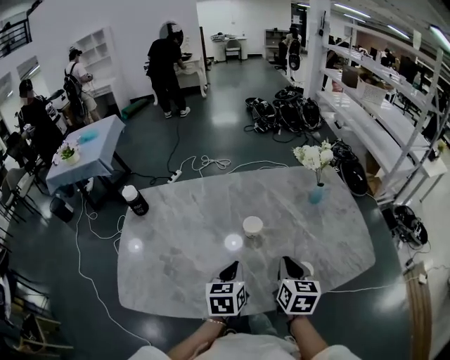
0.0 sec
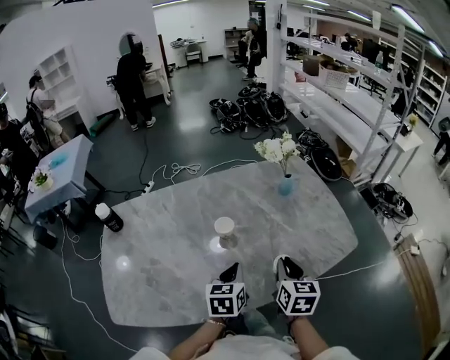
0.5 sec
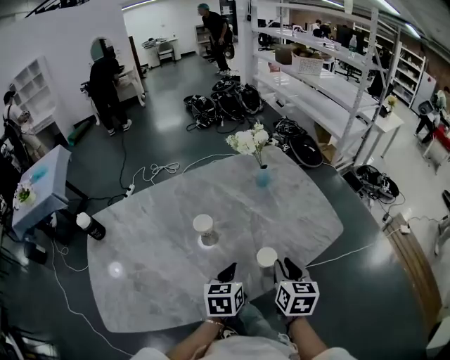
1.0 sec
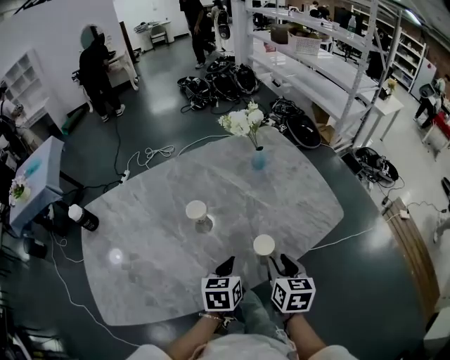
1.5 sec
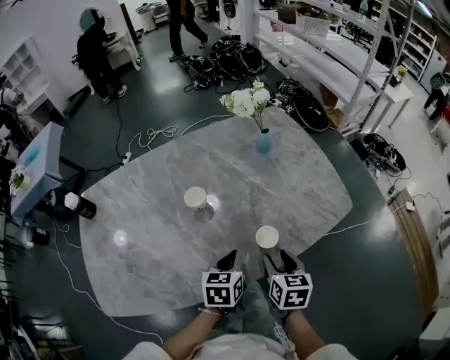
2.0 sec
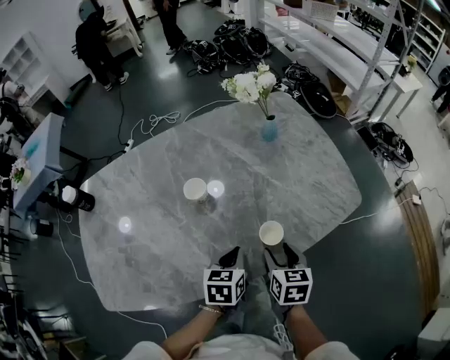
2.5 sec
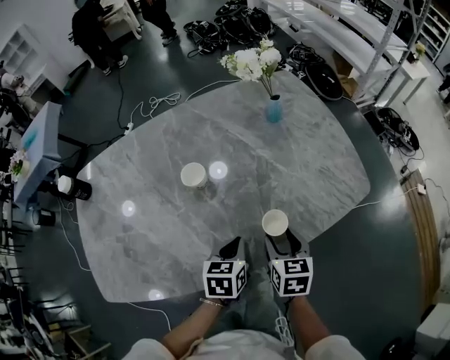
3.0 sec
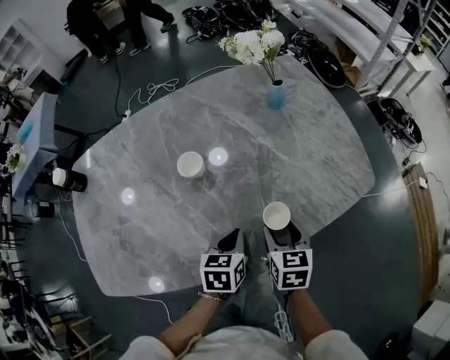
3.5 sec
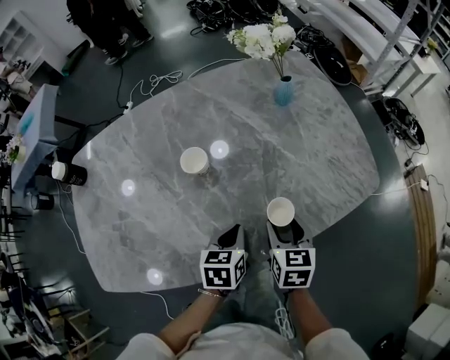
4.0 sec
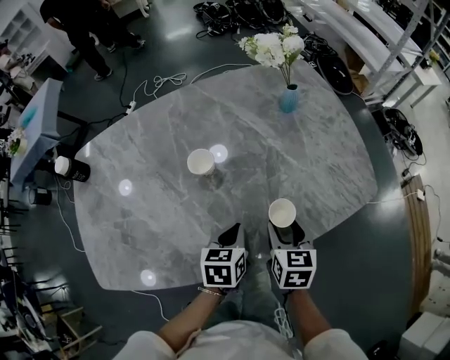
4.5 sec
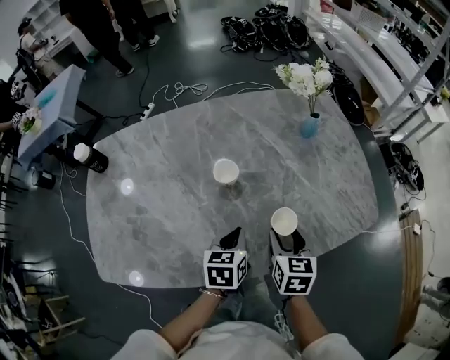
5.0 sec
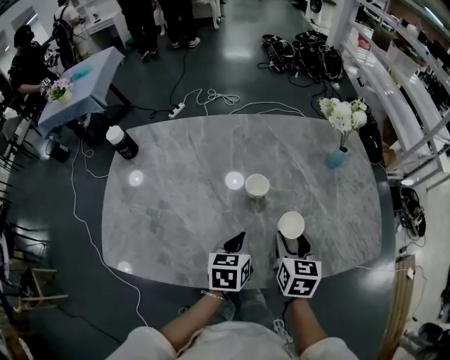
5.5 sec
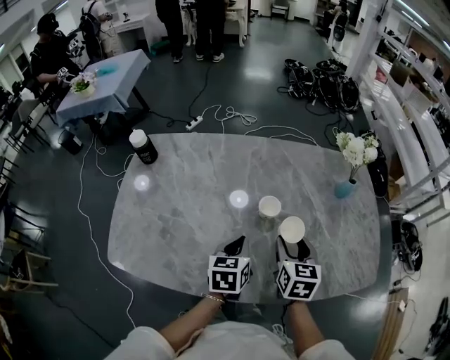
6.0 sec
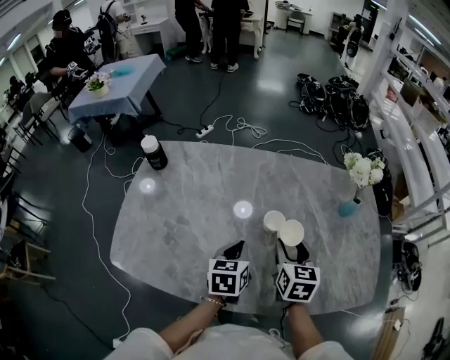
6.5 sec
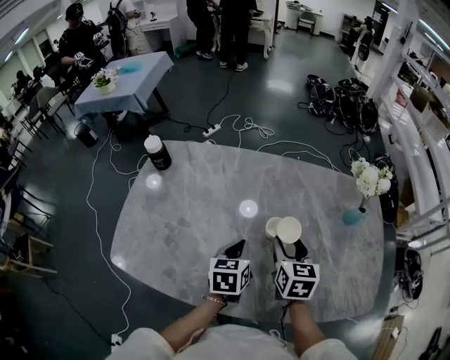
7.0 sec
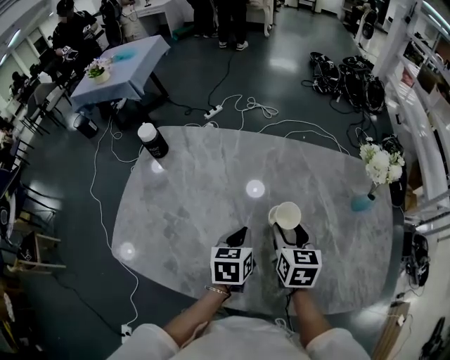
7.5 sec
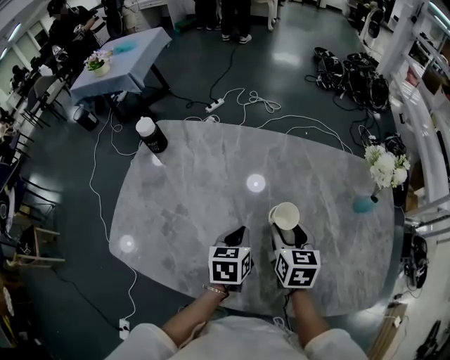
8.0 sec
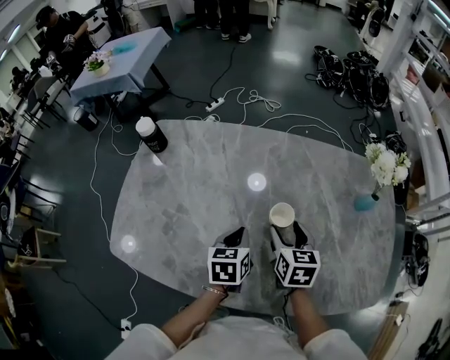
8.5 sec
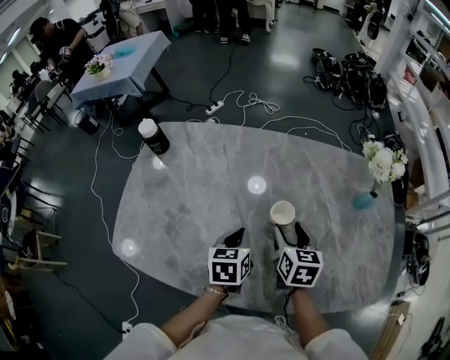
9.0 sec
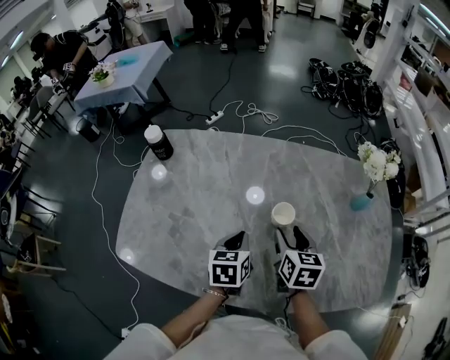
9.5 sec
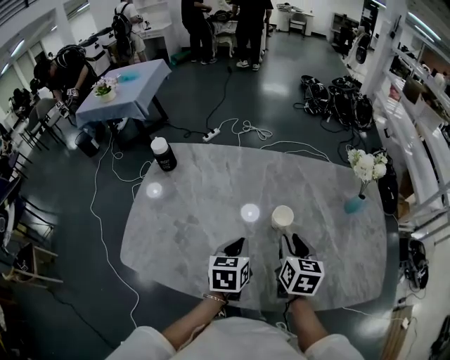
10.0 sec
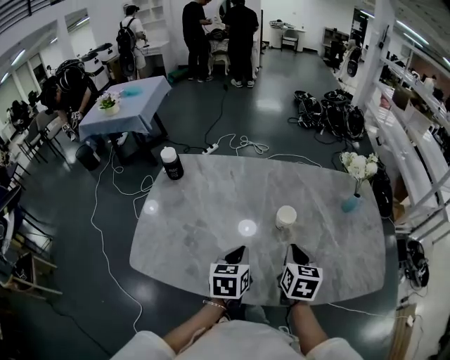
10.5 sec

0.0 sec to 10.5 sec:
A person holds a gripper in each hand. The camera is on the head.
0.0 sec to 2.0 sec: The right gripper heads to the right, downward and backward, covering some 15 cm, and opens, while the left gripper shifts about 15 cm to the right and downward, and turns by approximately 20 degrees.
2.0 sec to 4.0 sec: The right gripper changes place by approximately 5 cm. The left gripper moves downward, some 5 cm.
4.0 sec to 6.5 sec: The right gripper travels to the left, upward and forward by some 25 cm, and turns by approximately 20 degrees. The left gripper moves to the left and upward, approximately 20 cm, and changes its angle by roughly 30 degrees.
6.5 sec to 8.5 sec: The left gripper shifts by about 5 cm, while the right gripper goes some 5 cm forward and downward.
8.5 sec to 10.5 sec: The two grippers go approximately 15 cm backward and upward. The right gripper closes up.

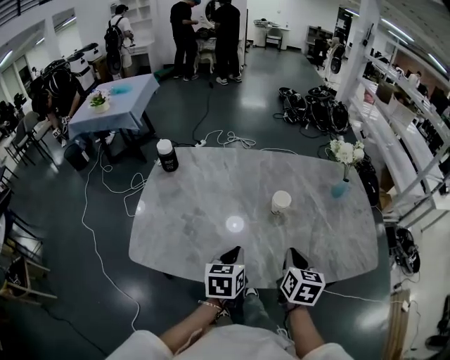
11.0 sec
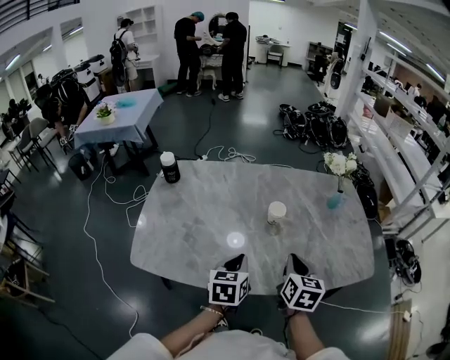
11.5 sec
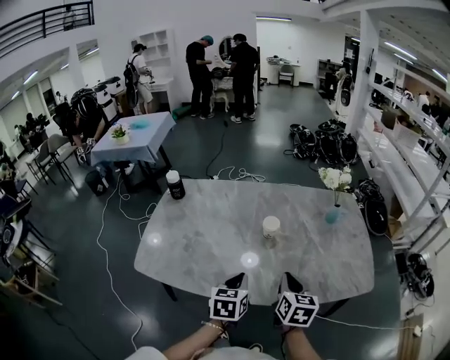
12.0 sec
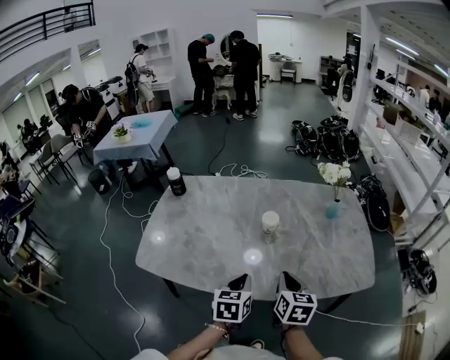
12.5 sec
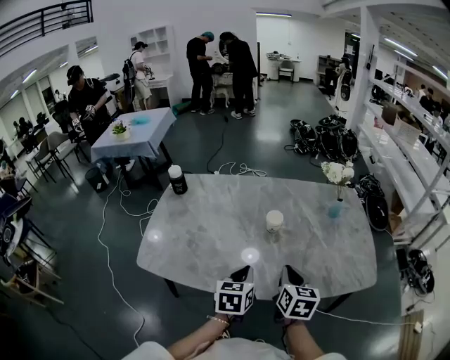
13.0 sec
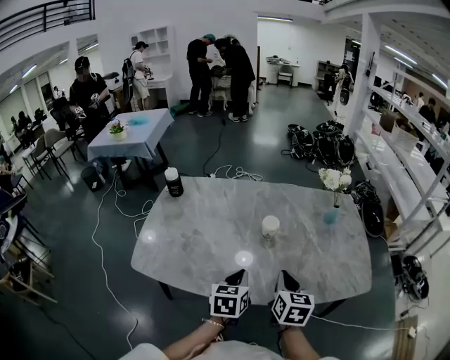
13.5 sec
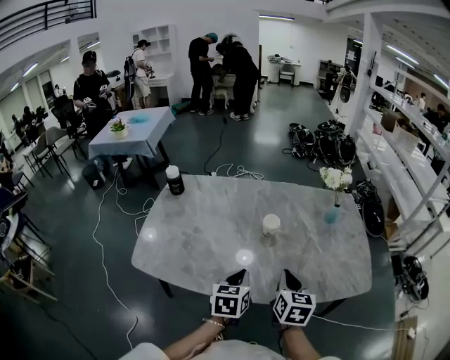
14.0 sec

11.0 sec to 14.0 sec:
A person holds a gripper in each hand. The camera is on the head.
11.0 sec to 12.5 sec: The right gripper is displaced backward and to the right by roughly 10 cm. Meanwhile the left gripper travels to the right and backward by roughly 10 cm.
12.5 sec to 14.0 sec: There are only small adjustments of the grippers.

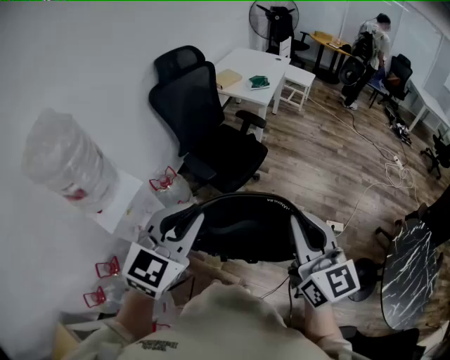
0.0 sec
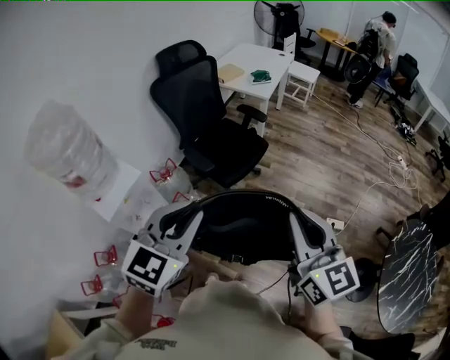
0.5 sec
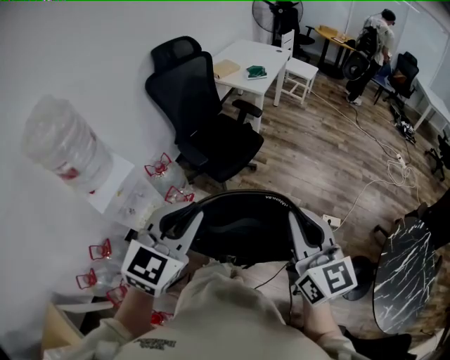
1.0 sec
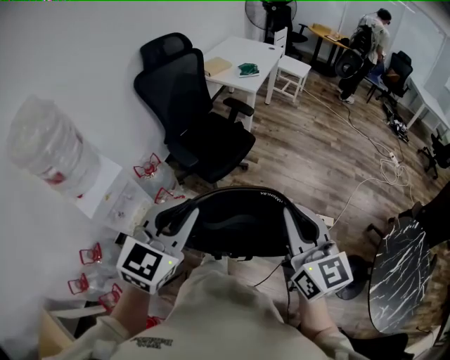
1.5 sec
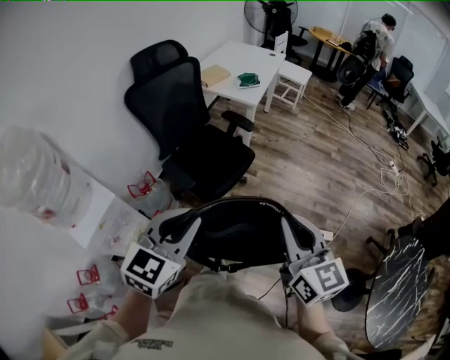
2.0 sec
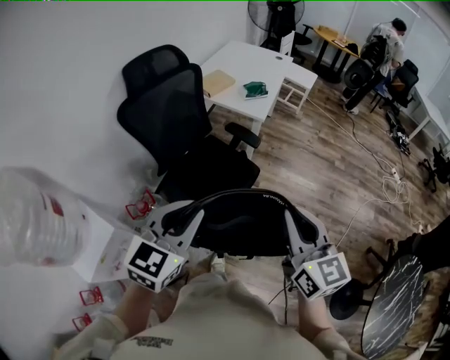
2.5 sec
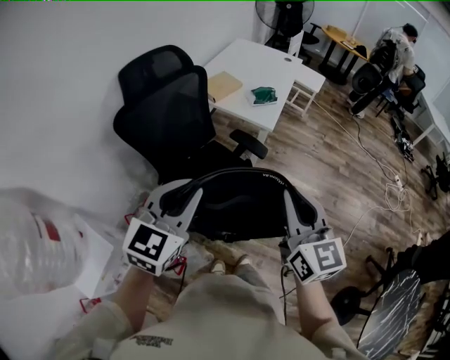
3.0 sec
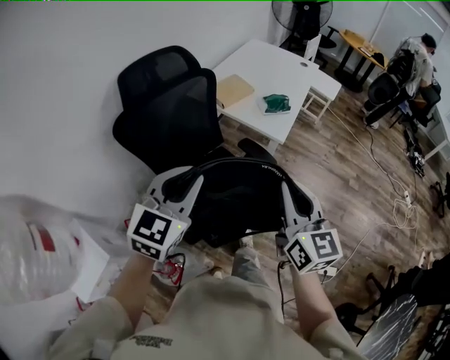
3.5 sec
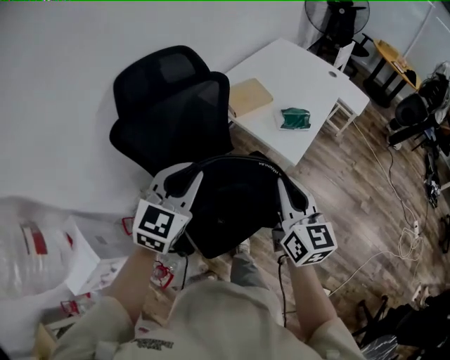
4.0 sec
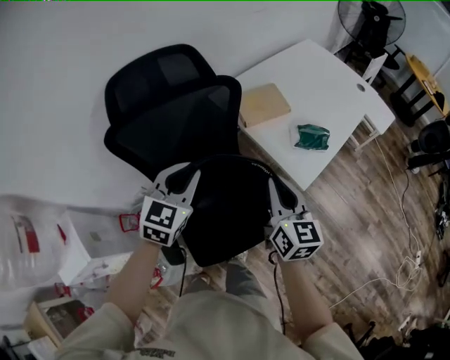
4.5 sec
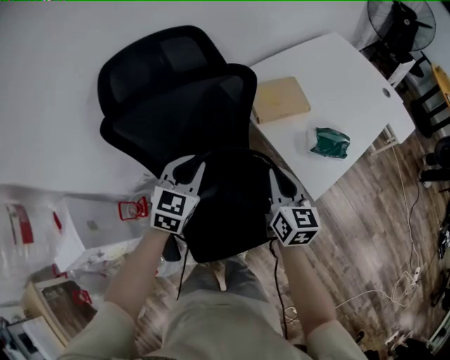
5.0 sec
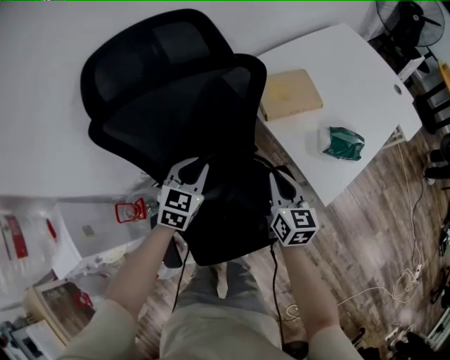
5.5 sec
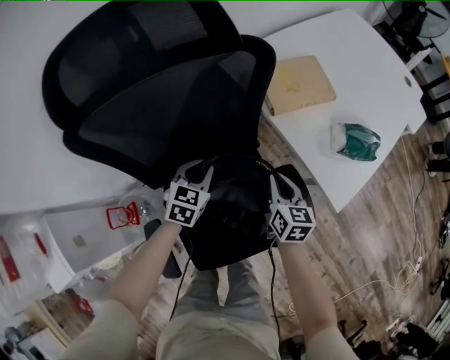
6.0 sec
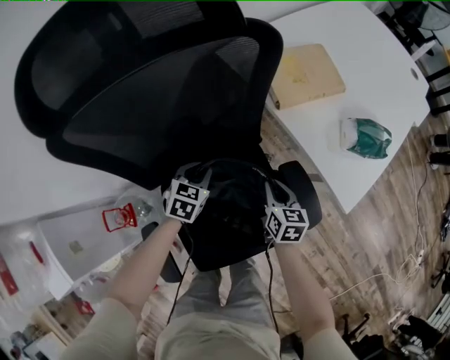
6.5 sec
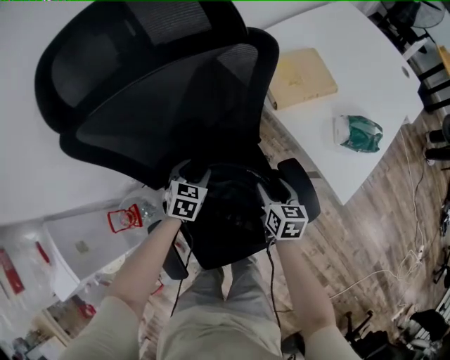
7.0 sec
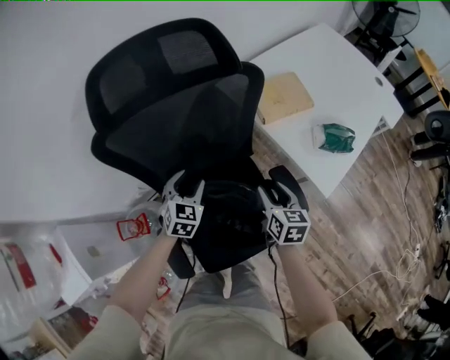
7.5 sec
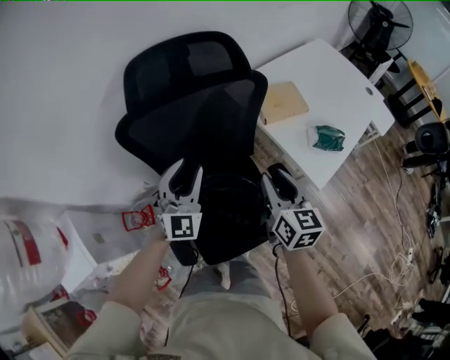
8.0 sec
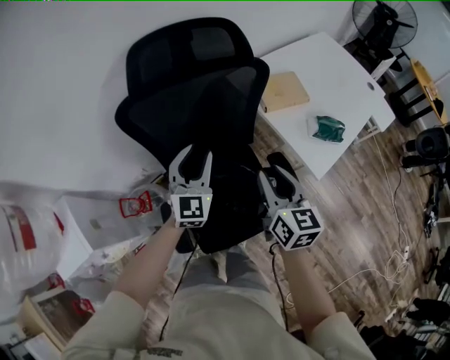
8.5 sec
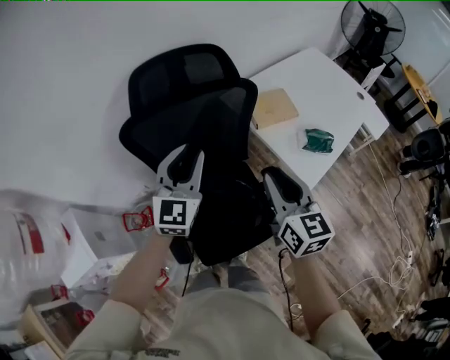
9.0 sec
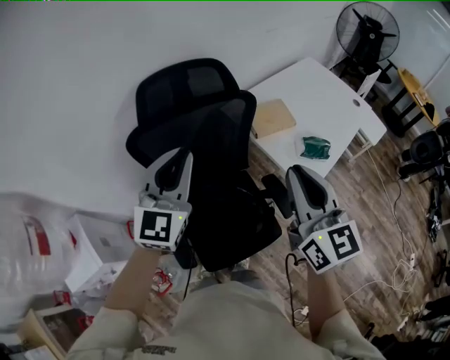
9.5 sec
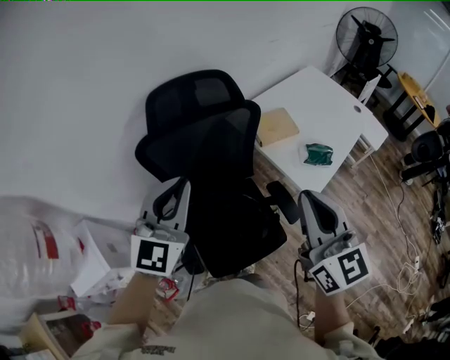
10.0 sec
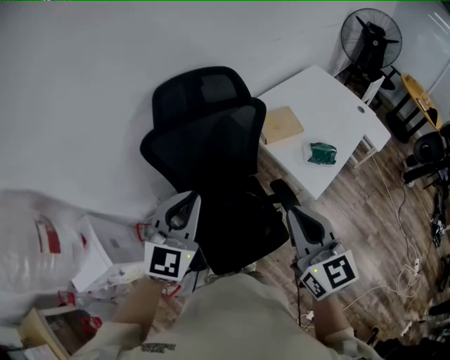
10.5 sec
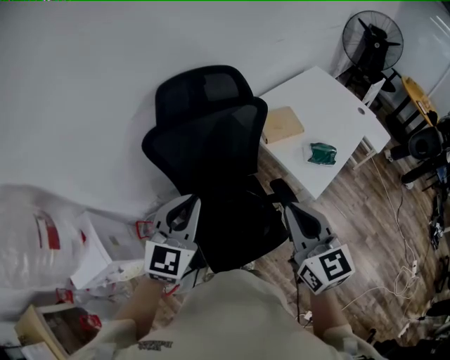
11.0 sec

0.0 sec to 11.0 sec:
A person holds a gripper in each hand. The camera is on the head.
0.0 sec to 2.0 sec: The grippers both shift forward, to the right and downward by roughly 15 cm.
2.0 sec to 3.5 sec: Both grippers are carried forward, some 40 cm.
3.5 sec to 5.5 sec: The left gripper changes place by approximately 40 cm, and changes its angle by roughly 30 degrees, while the right gripper changes place by some 50 cm, and turns by roughly 30 degrees.
5.5 sec to 7.5 sec: The right gripper goes downward and returns, some 20 cm each way, and opens. Meanwhile the left gripper is displaced to the left by roughly 5 cm, travels downward and back again, approximately 20 cm each way, and opens its fingers.
7.5 sec to 9.0 sec: The grippers both shift upward by some 25 cm. The left gripper tilts its fingers approximately 30 degrees upward, and closes its fingers. The right gripper rotates some 30 degrees, and closes its fingers.
9.0 sec to 11.0 sec: The left gripper travels backward by roughly 10 cm, and closes; the right gripper heads backward and upward, covering some 10 cm, and closes its fingers.

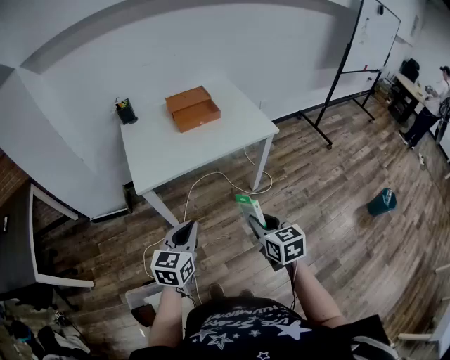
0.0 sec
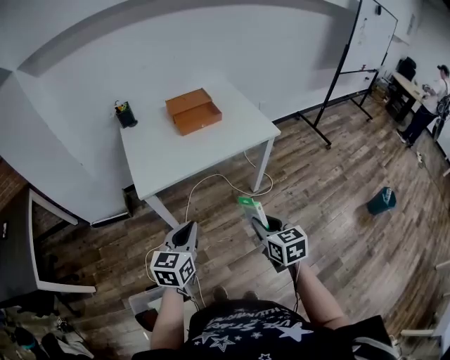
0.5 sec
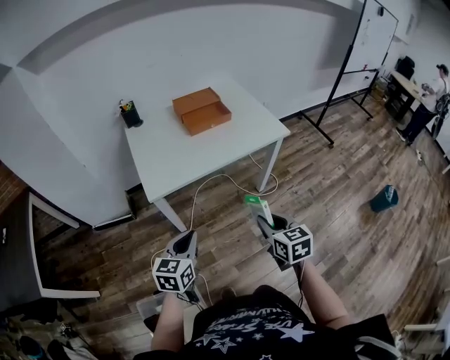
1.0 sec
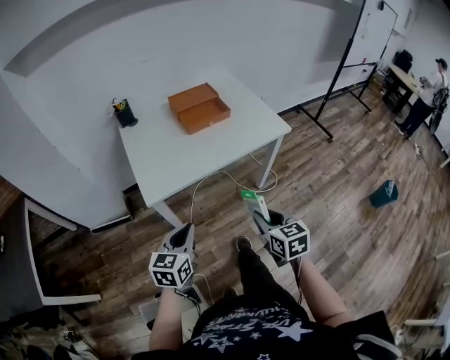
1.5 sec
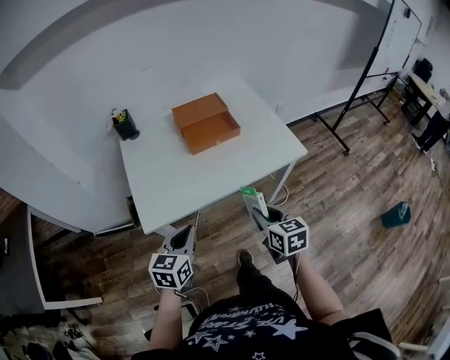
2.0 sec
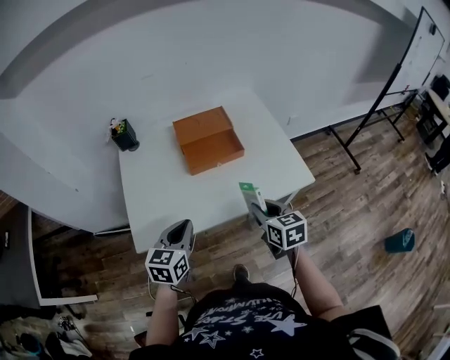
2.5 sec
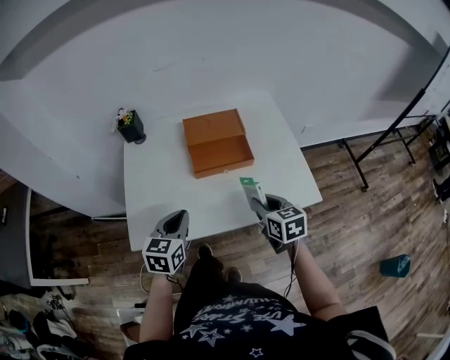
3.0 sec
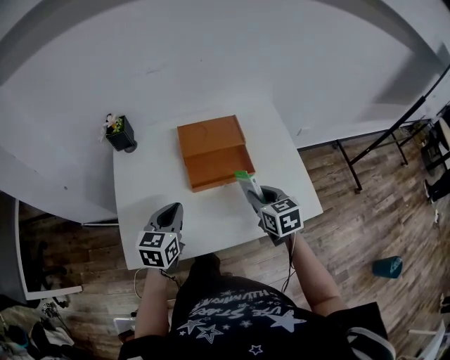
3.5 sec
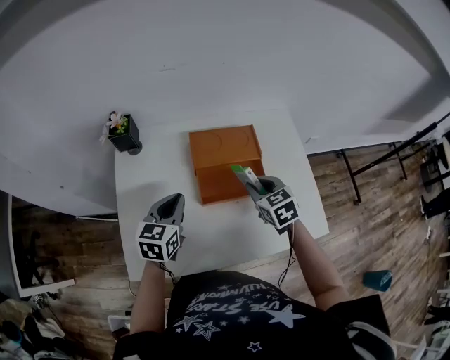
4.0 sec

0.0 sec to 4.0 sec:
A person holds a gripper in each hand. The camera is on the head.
0.0 sec to 2.0 sec: Both grippers travel together forward, roughly 25 cm.
2.0 sec to 4.0 sec: Both grippers travel together forward, about 40 cm. The right gripper turns by roughly 30 degrees.
